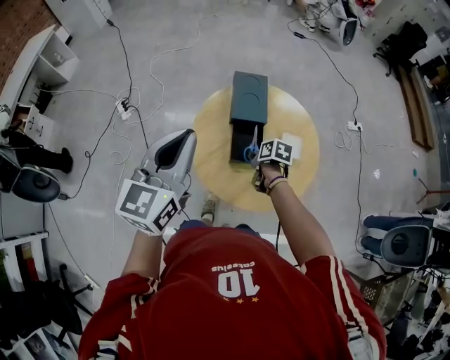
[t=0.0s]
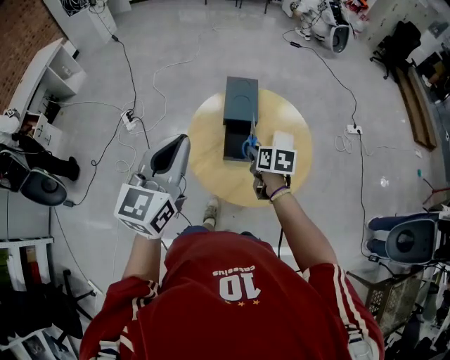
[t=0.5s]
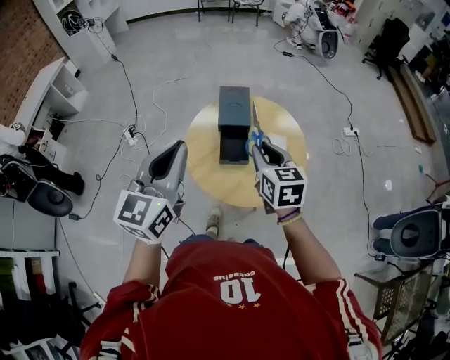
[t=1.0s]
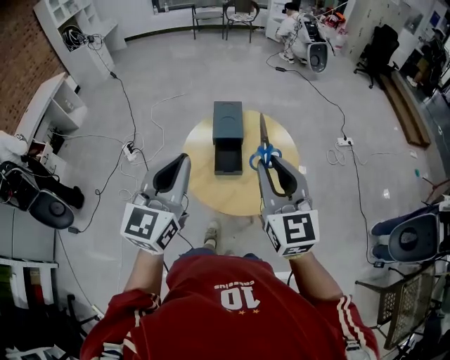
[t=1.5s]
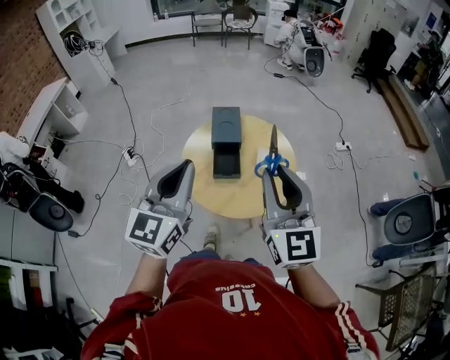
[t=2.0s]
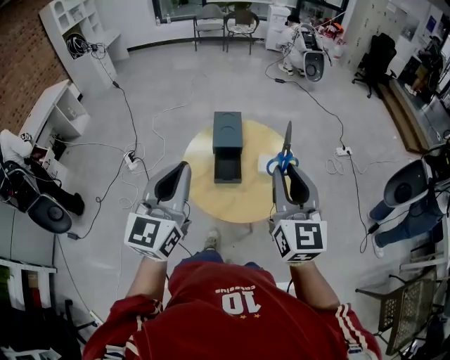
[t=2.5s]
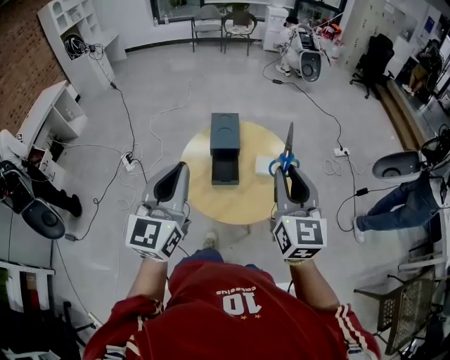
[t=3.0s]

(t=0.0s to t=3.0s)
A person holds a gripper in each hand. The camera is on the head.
t=0.0s - t=1.5s: The left gripper heads backward, to the right and upward, covering some 20 cm, while the right gripper shifts about 50 cm upward and backward, and angles its fingers upward, by some 60 degrees.
t=1.5s - t=3.0s: The right gripper goes approximately 5 cm to the right.

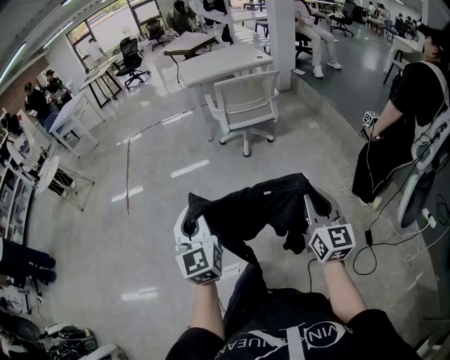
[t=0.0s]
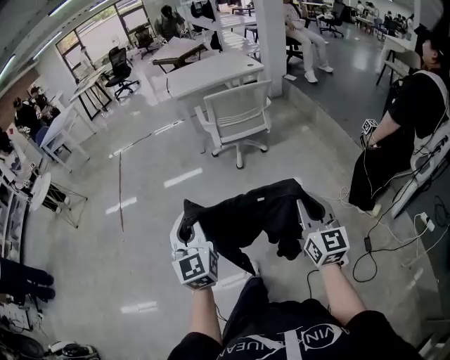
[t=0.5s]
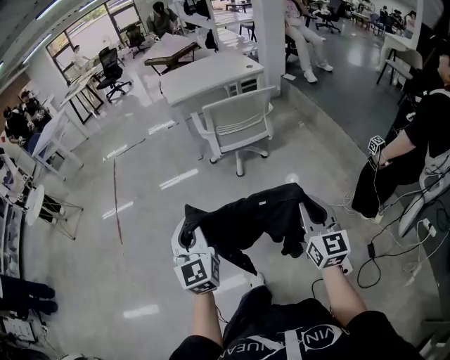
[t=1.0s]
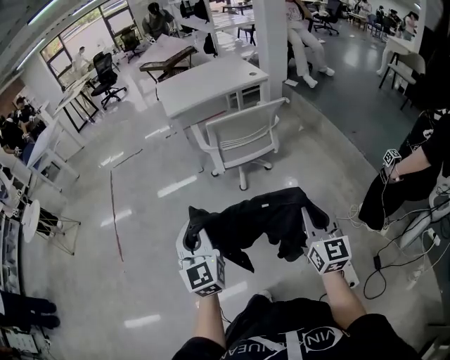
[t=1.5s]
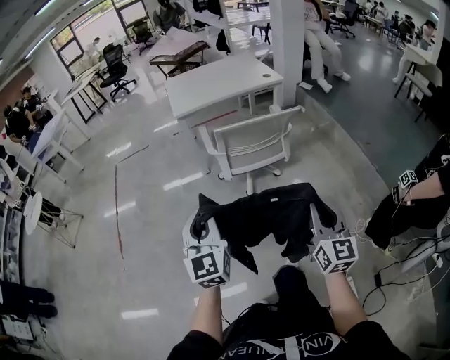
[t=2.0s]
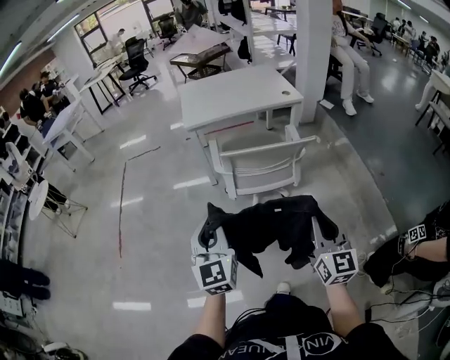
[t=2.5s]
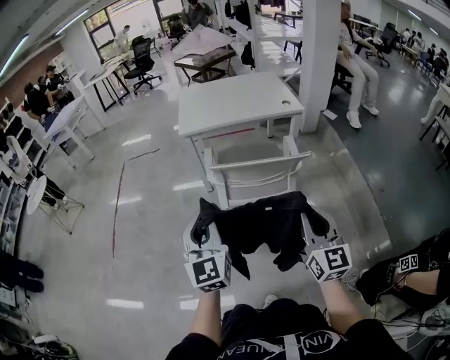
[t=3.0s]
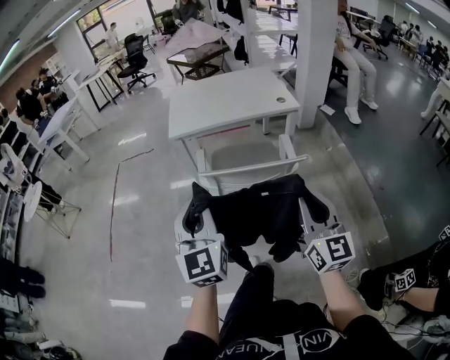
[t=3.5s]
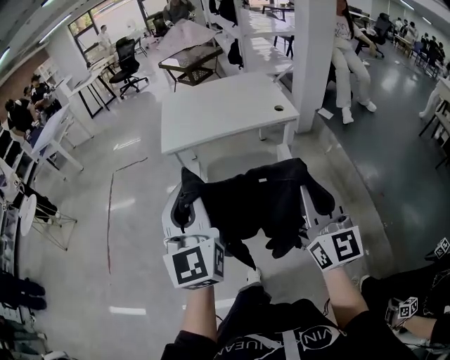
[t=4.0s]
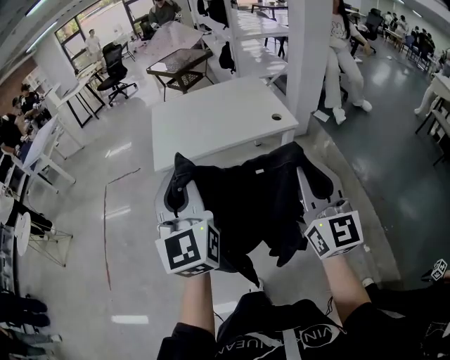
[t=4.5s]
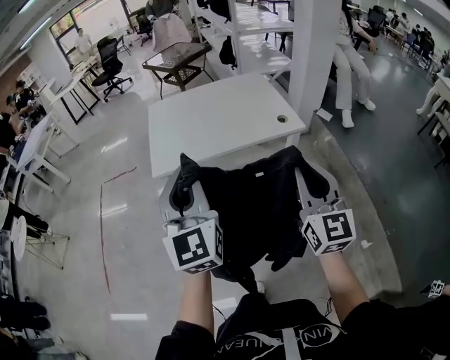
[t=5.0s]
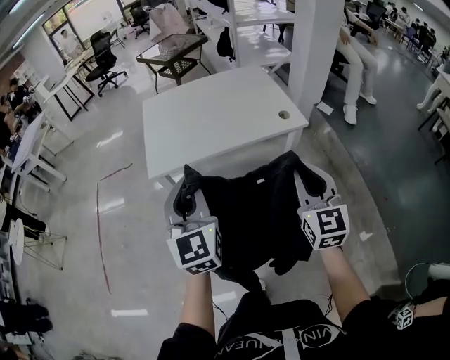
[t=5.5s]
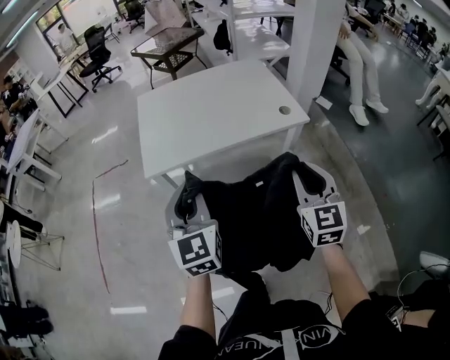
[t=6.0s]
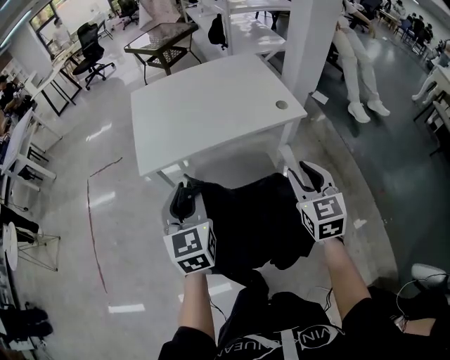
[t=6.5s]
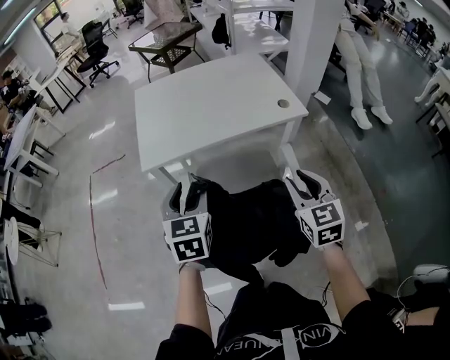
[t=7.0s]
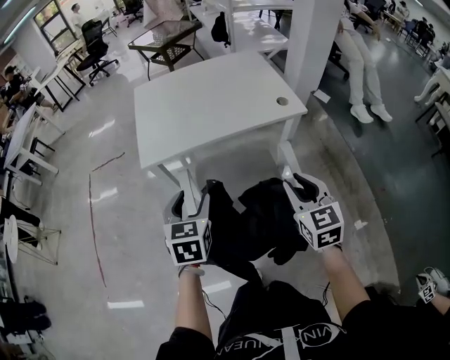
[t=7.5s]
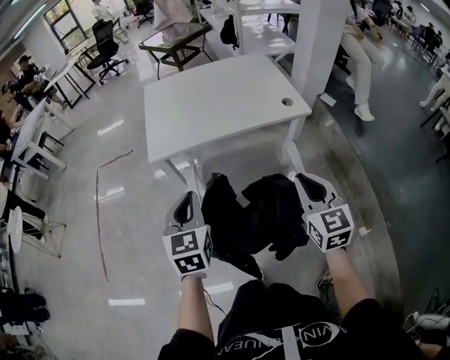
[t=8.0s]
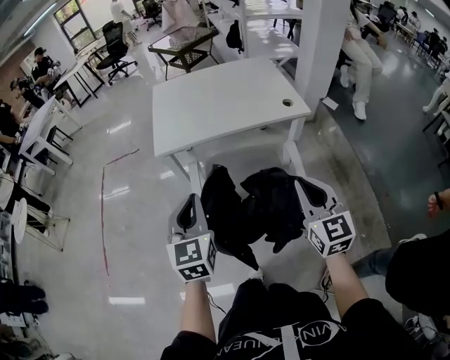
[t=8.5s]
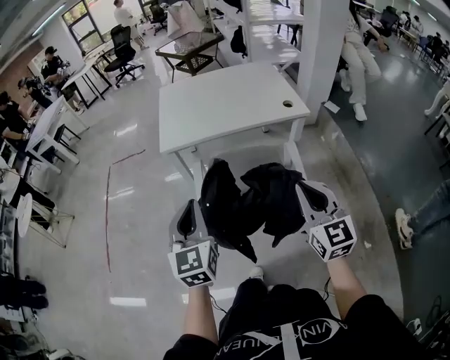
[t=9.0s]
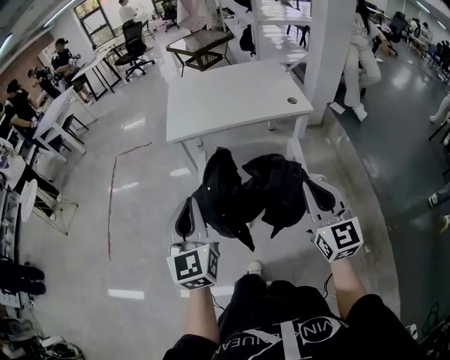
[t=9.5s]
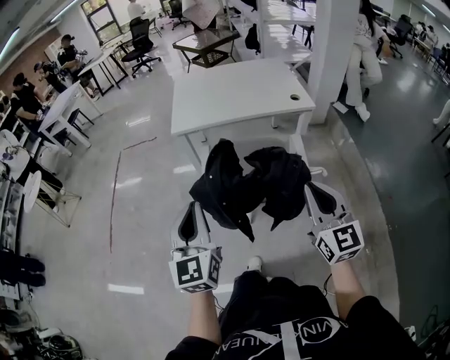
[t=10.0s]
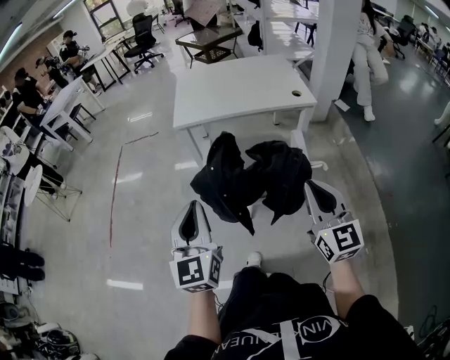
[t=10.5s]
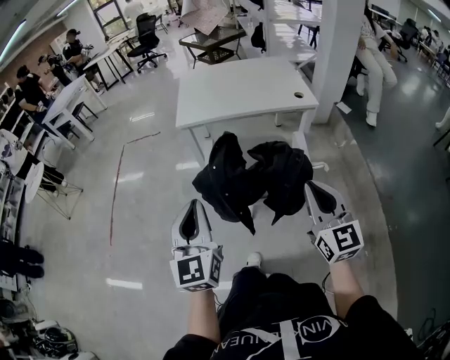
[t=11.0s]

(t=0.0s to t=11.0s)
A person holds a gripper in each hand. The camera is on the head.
t=0.0s - t=2.0s: The grippers both shift forward by approximately 40 cm.
t=2.0s - t=3.5s: The grippers both shift forward and to the right by about 30 cm.
t=3.5s - t=5.5s: The grippers both shift forward by about 35 cm.
t=5.5s - t=7.5s: The right gripper is displaced downward by about 10 cm, while the left gripper shifts some 15 cm downward, points its fingers approximately 30 degrees further downward, and opens its fingers.
t=7.5s - t=9.0s: The two grippers go some 15 cm backward and upward. The right gripper closes. The left gripper swivels about 30 degrees, and closes its fingers.
t=9.0s - t=11.0s: Both grippers move backward, some 10 cm.

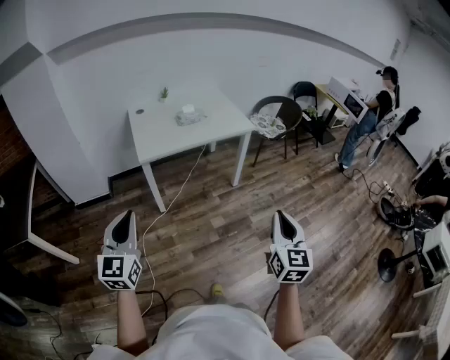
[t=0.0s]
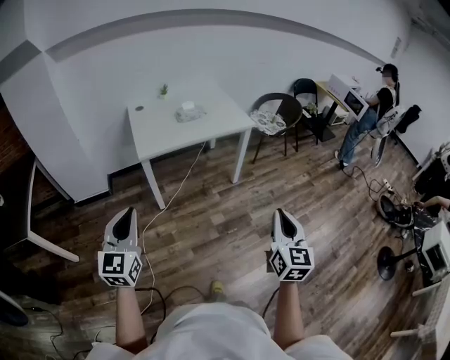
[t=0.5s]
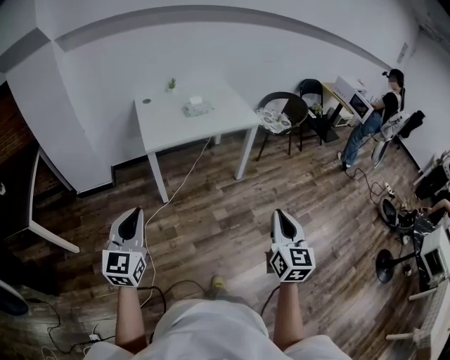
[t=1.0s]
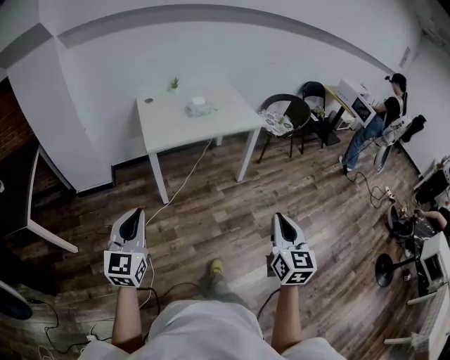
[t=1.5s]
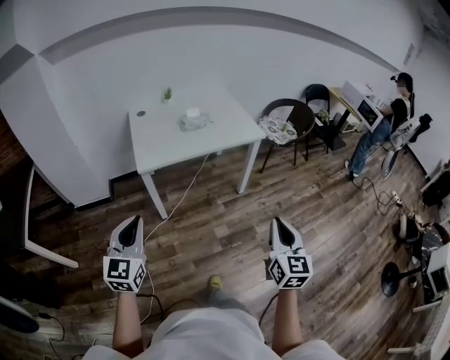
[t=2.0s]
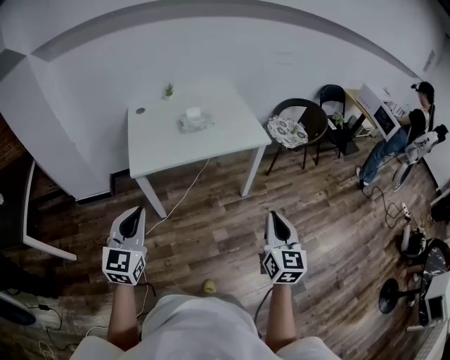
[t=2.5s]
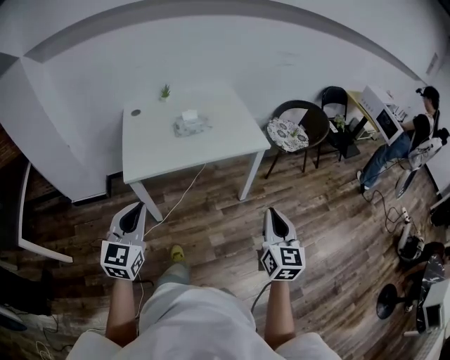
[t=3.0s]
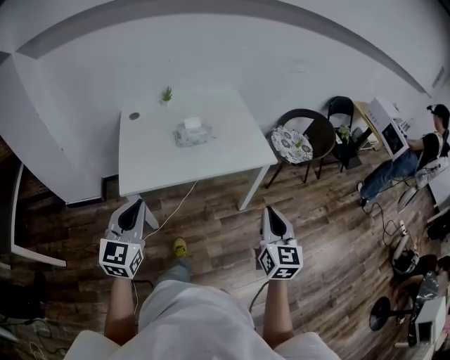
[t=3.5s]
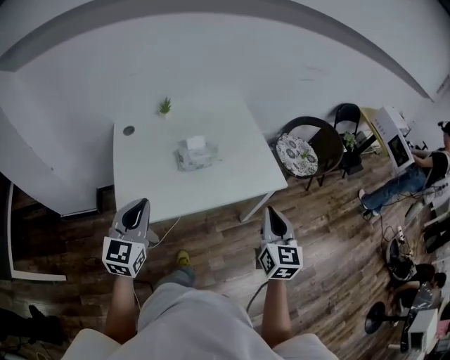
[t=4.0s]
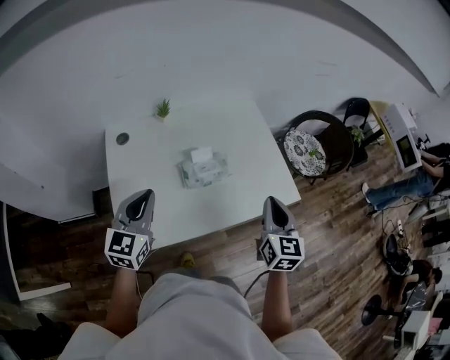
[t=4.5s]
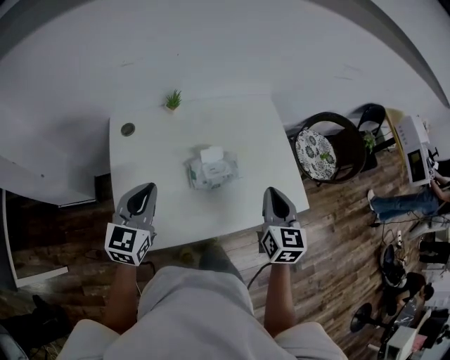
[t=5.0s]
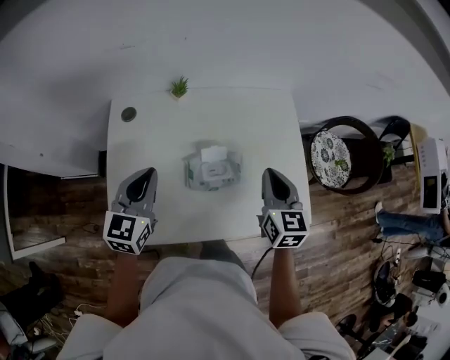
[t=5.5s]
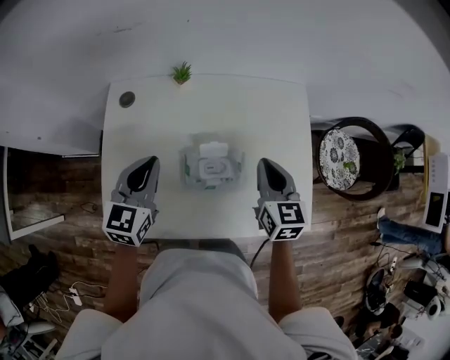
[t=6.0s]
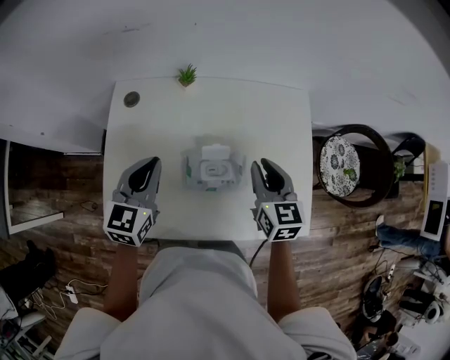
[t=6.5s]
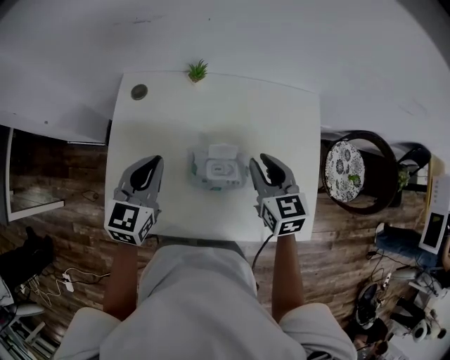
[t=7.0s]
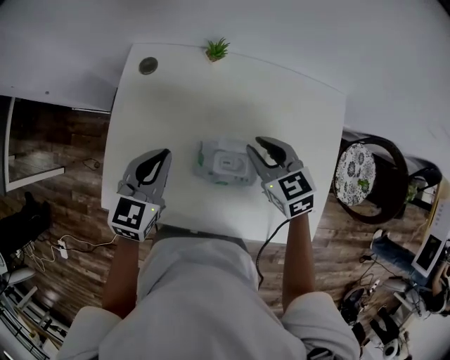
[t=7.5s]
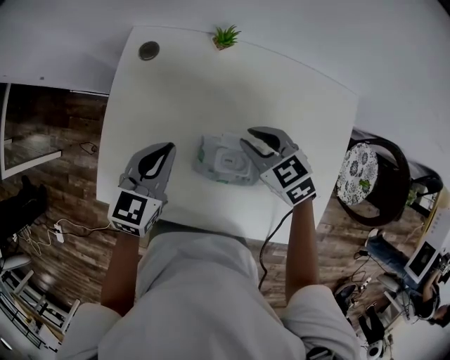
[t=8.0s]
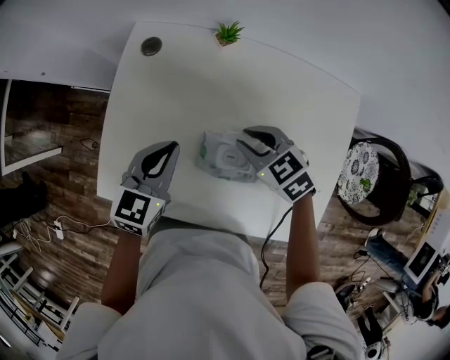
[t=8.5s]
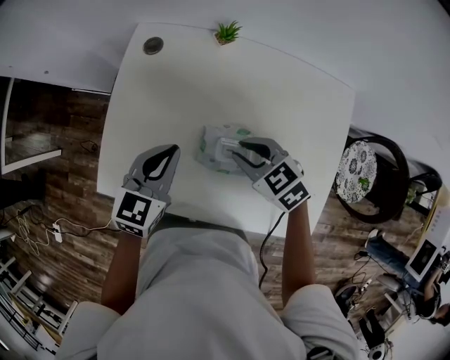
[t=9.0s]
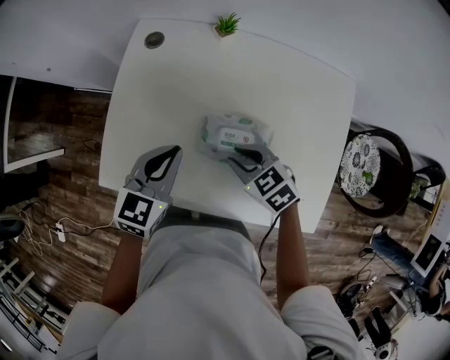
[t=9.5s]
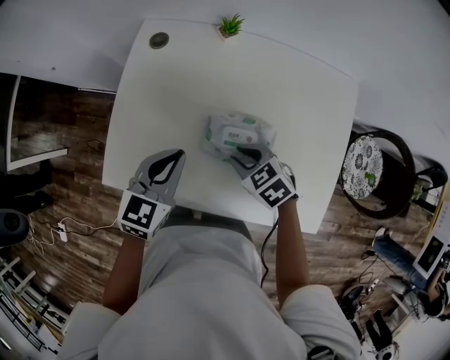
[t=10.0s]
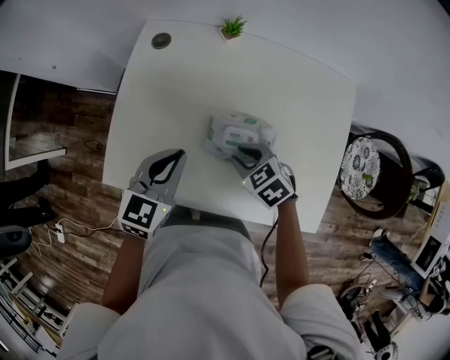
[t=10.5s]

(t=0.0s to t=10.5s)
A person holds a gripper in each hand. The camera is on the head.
t=0.0s - t=2.0s: Both grippers travel together forward, approximately 15 cm.
t=2.0s - t=4.0s: The pair of grippers is taken forward, about 50 cm.
t=4.0s - t=6.5s: The grippers both shift forward by roughly 35 cm. The right gripper rotates about 30 degrees.
t=6.5s - t=8.5s: The left gripper moves downward, approximately 10 cm. Meanwhile the right gripper shifts by roughly 15 cm, and rotates some 60 degrees.
t=8.5s - t=10.5s: Both grippers travel together backward, about 10 cm.

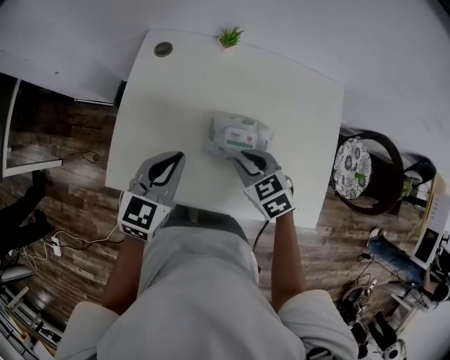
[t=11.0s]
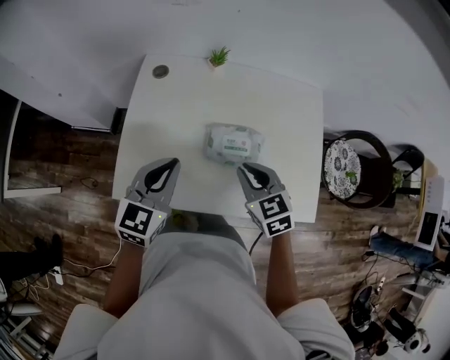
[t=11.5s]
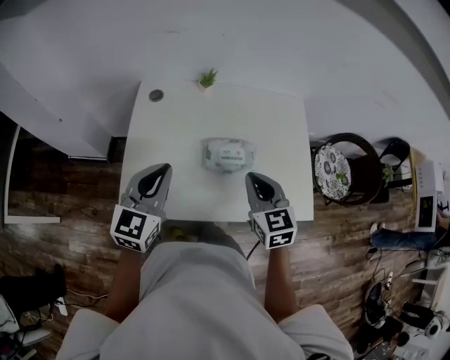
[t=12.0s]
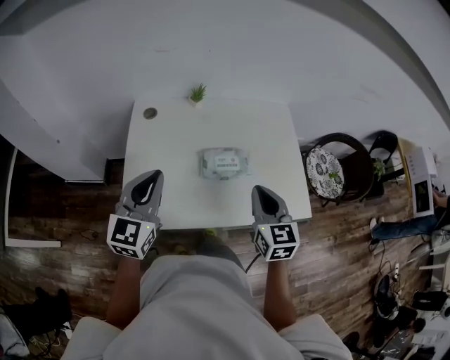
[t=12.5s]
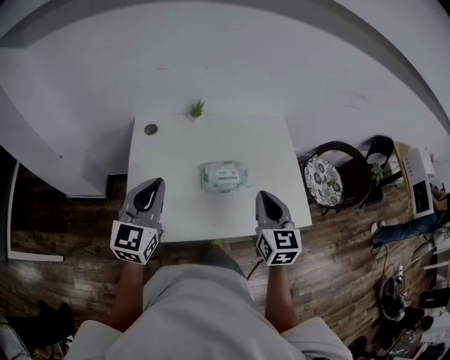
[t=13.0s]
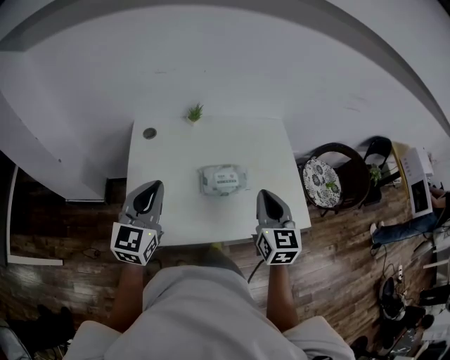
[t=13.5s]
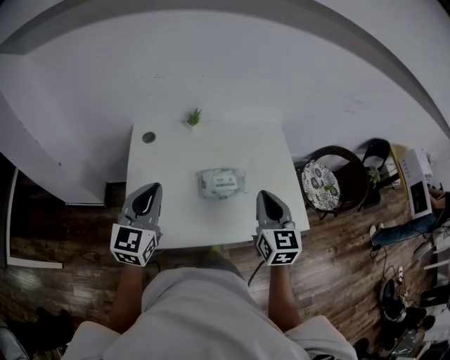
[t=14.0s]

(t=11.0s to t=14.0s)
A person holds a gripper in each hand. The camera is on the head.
t=11.0s - t=12.5s: The right gripper moves upward and backward, roughly 20 cm, swivels roughly 50 degrees, and closes up, while the left gripper is displaced upward, to the left and backward by about 15 cm, and changes its angle by some 20 degrees.
t=12.5s - t=14.0s: The grippers stay close to where they were, moving slightly.
